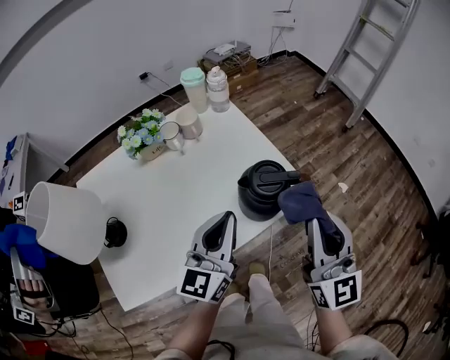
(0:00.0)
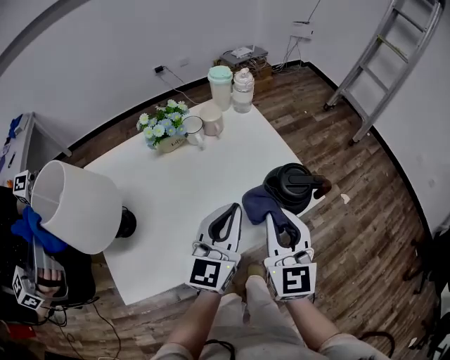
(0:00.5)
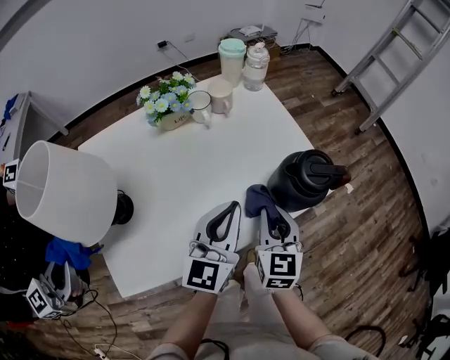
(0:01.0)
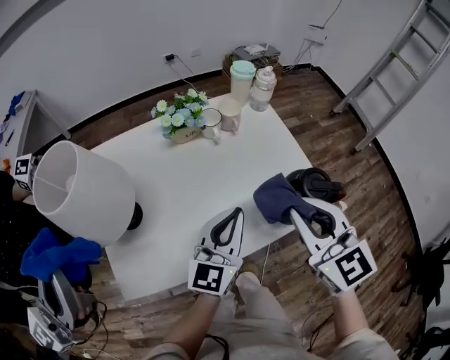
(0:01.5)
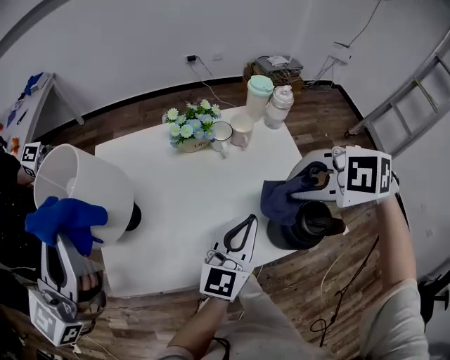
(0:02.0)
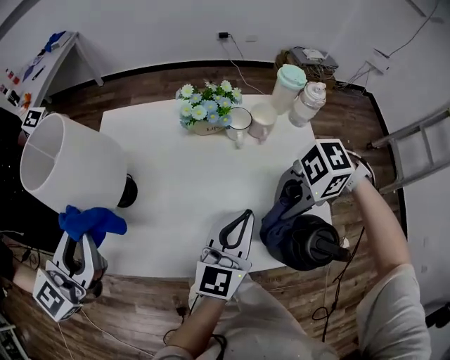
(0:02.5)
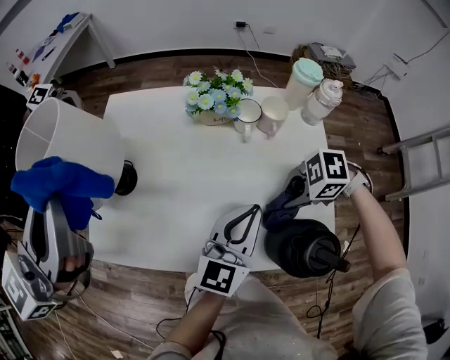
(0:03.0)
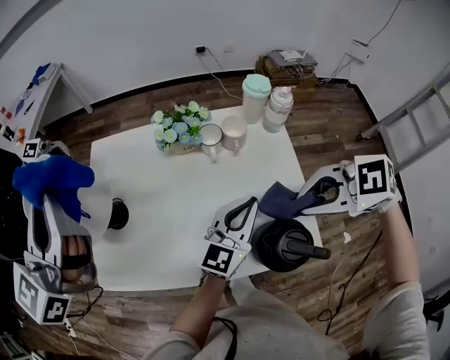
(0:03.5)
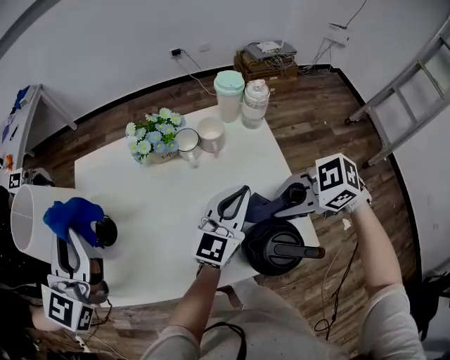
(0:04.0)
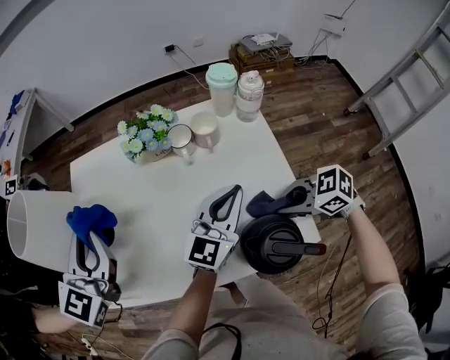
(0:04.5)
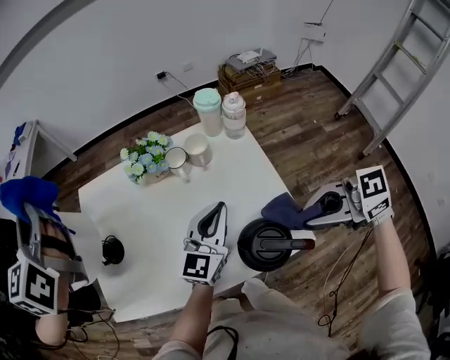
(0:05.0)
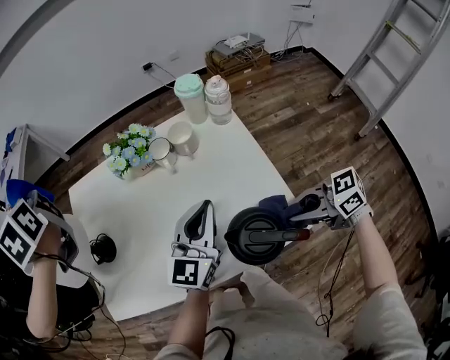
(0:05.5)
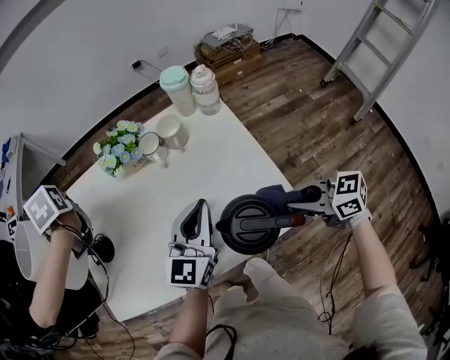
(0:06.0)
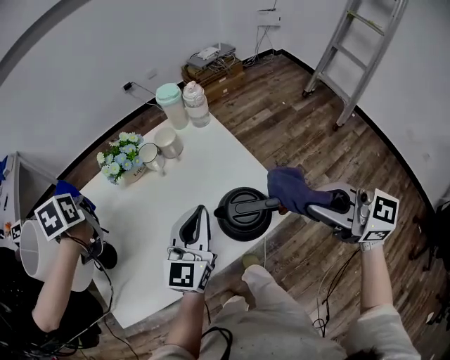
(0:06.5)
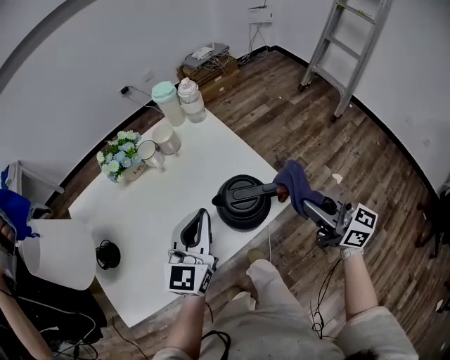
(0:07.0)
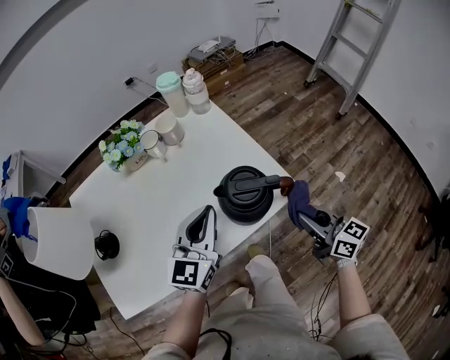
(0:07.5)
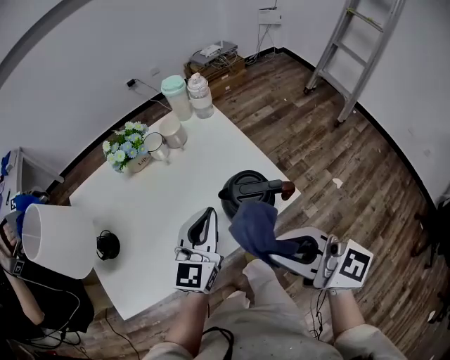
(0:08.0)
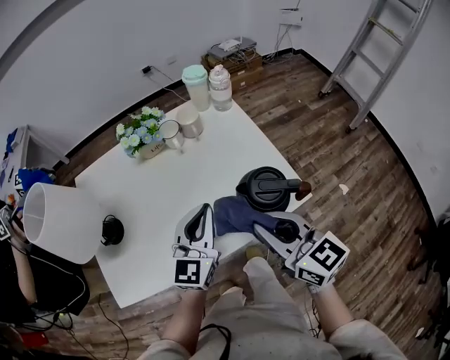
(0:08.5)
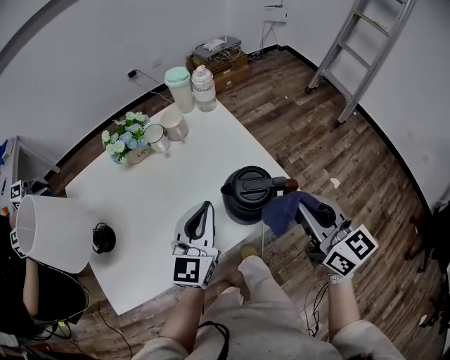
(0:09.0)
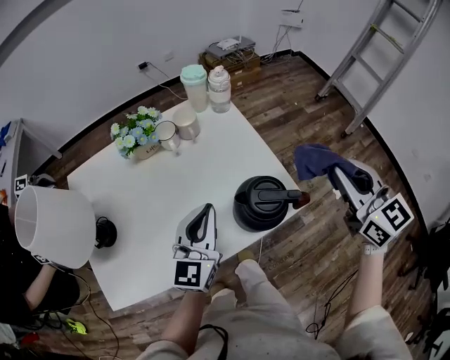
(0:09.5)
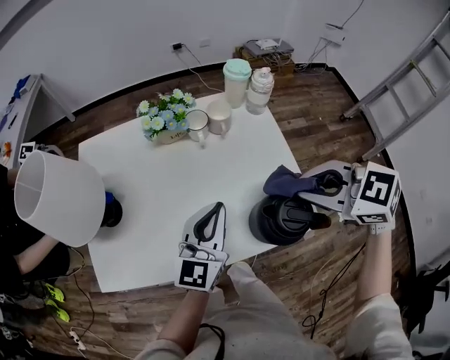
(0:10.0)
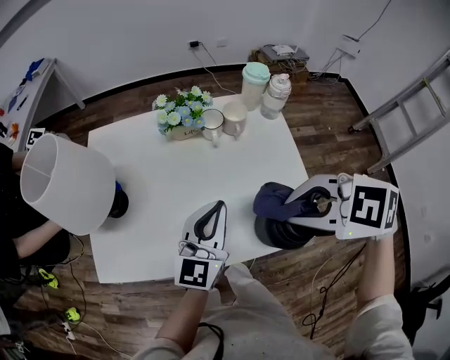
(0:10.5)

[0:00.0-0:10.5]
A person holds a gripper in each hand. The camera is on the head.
0:00.0 to 0:02.0: The left gripper moves roughly 5 cm, while the right gripper moves some 20 cm downward and comes back, and points its fingers about 60 degrees further downward.
0:02.0 to 0:04.0: The right gripper goes up and down, roughly 20 cm each way, reversing 2 times, and rotates some 30 degrees. Meanwhile the left gripper ends up some 15 cm from where it was.
0:04.0 to 0:06.5: The right gripper goes up and down, approximately 20 cm each way, reversing 3 times, and tips its fingers upward by some 30 degrees; the left gripper shifts by about 10 cm.
0:06.5 to 0:08.5: The right gripper heads to the left and downward, covering approximately 15 cm. Meanwhile the left gripper heads to the left, covering about 5 cm.
0:08.5 to 0:10.5: The right gripper points its fingers approximately 40 degrees further downward.

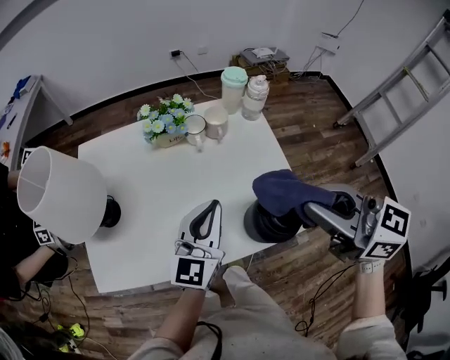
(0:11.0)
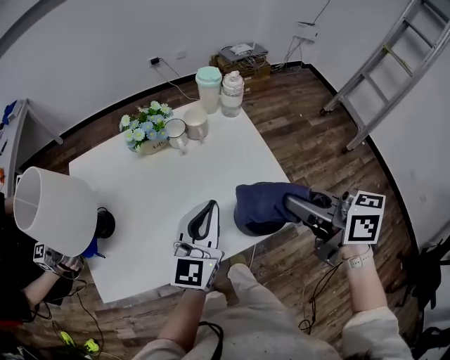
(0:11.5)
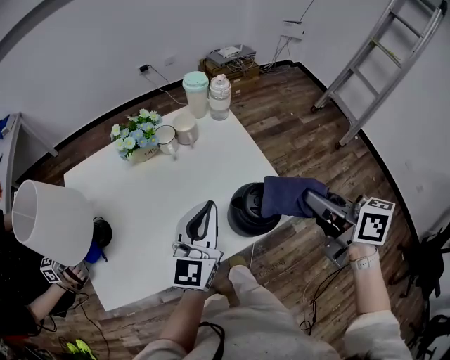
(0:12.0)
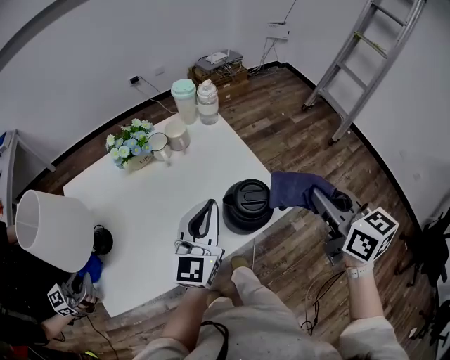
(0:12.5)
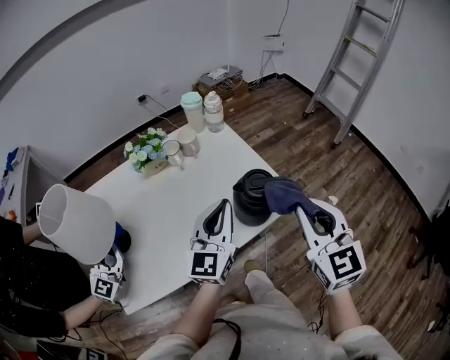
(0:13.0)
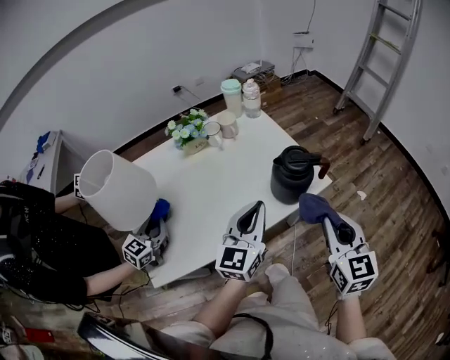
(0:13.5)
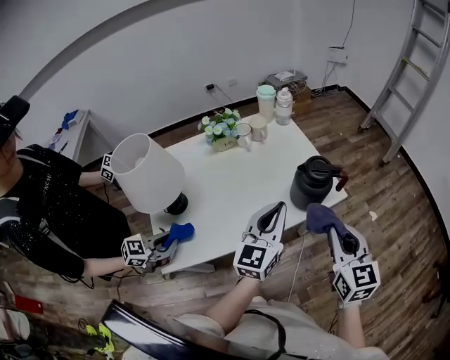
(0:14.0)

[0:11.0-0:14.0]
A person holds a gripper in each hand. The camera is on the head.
0:11.0 to 0:12.5: The right gripper ends up roughly 15 cm from where it was, and swivels approximately 40 degrees; the left gripper shifts by roughly 5 cm.
0:12.5 to 0:14.0: The left gripper heads backward, covering approximately 15 cm. Meanwhile the right gripper heads backward and to the left, covering approximately 20 cm.

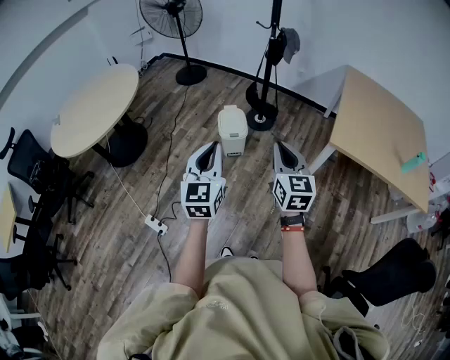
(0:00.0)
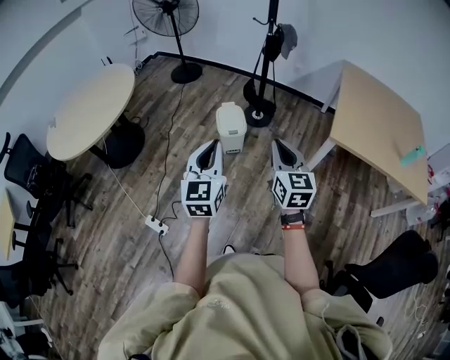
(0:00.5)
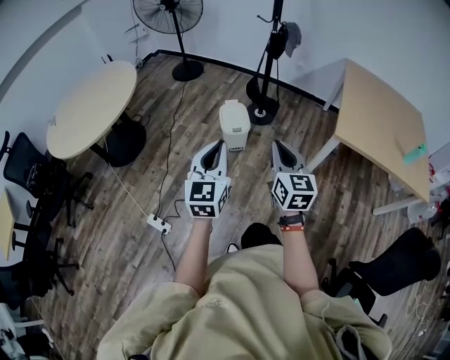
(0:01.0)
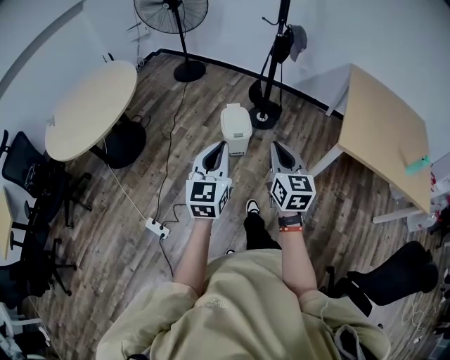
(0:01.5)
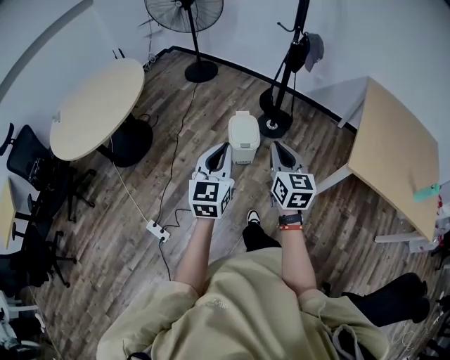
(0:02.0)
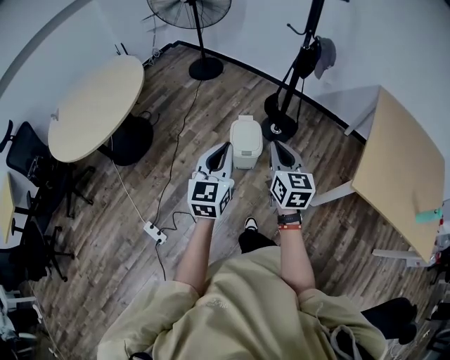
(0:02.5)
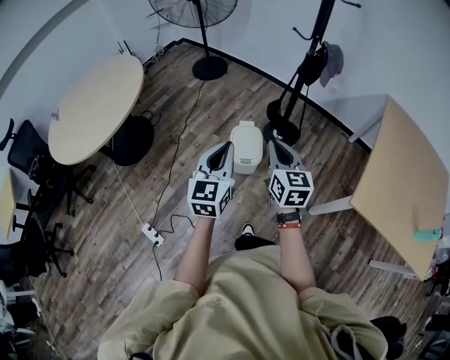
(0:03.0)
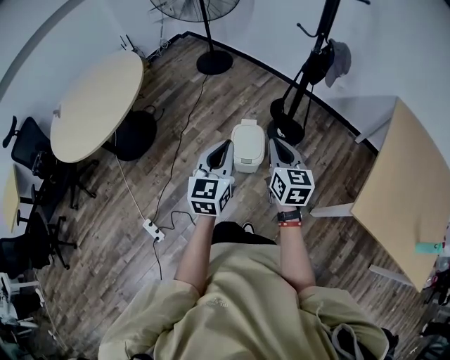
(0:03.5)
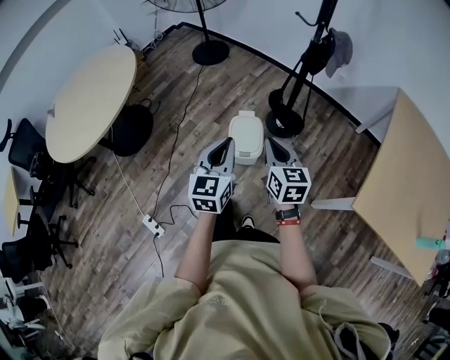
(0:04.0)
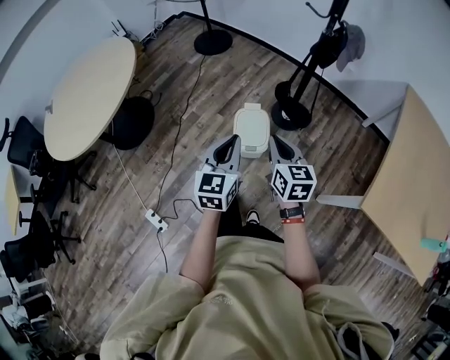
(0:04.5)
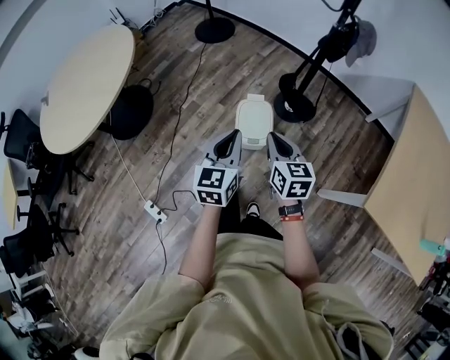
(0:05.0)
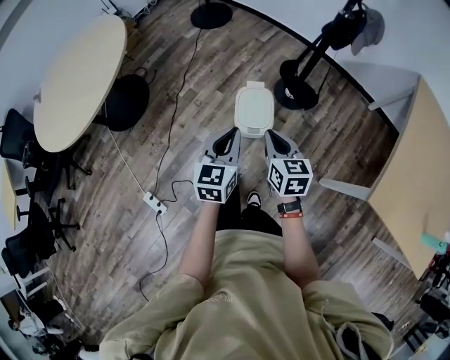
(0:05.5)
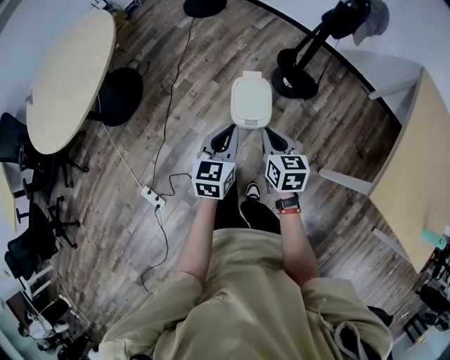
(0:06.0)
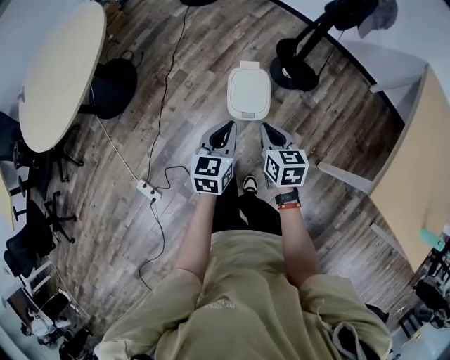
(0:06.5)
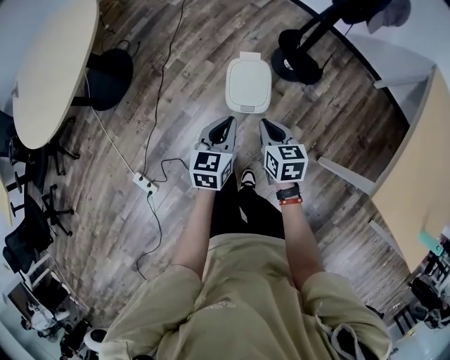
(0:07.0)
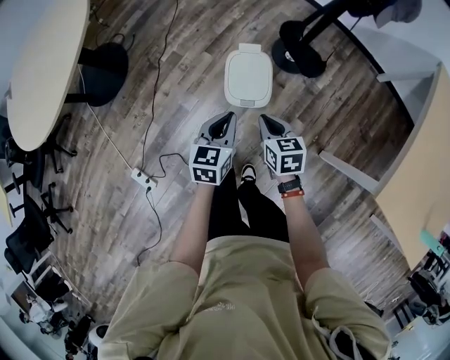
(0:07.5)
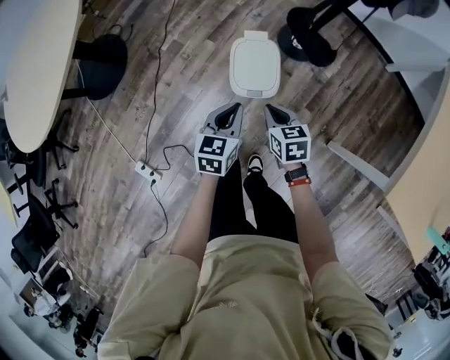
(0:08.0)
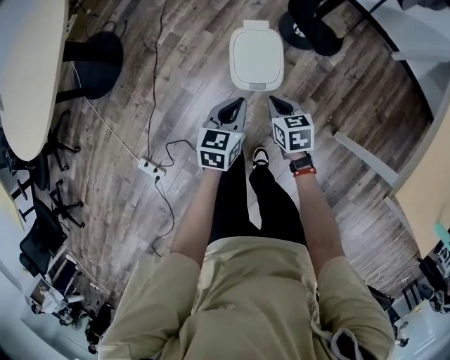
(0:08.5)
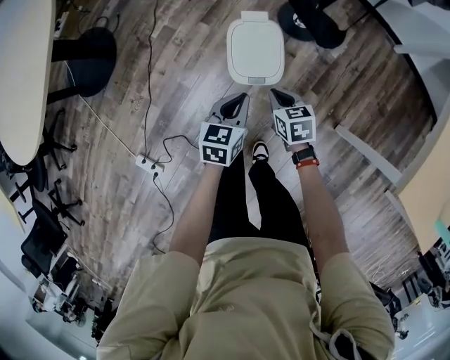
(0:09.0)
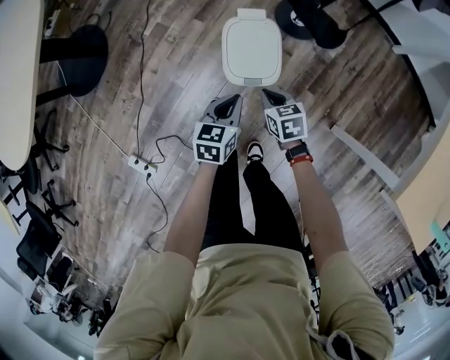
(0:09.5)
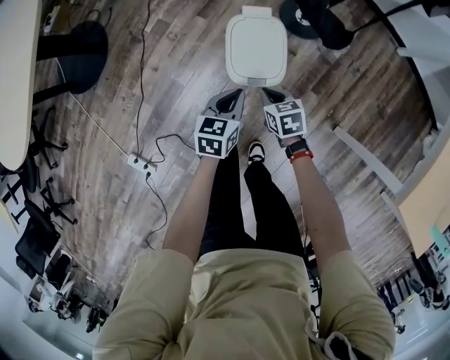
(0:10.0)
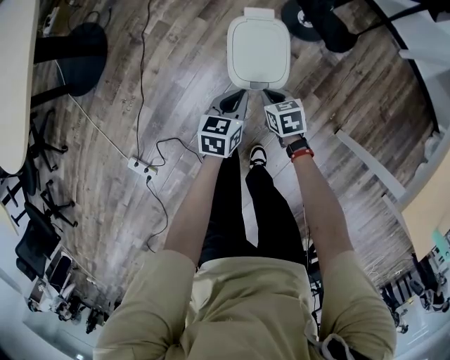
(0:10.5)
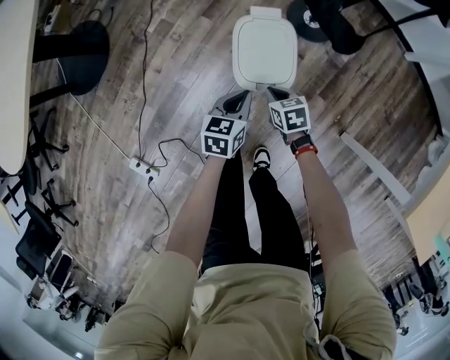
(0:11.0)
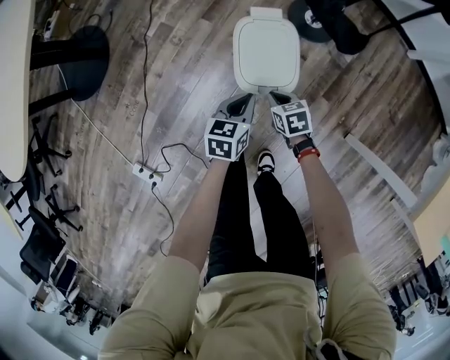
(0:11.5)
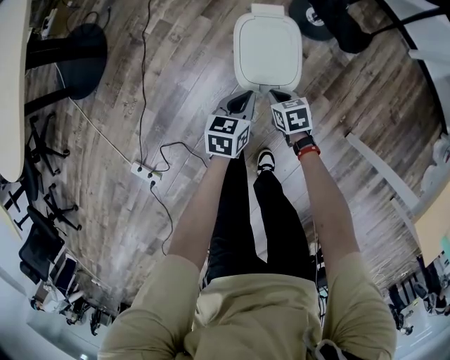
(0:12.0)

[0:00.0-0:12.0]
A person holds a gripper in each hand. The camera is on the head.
0:00.0 to 0:02.0: The right gripper moves forward and to the left, roughly 20 cm; the left gripper goes about 15 cm forward.
0:02.0 to 0:04.0: The grippers both shift forward by approximately 30 cm.
0:04.0 to 0:06.0: The right gripper travels downward by roughly 15 cm, while the left gripper travels downward and forward by about 20 cm.
0:06.0 to 0:08.0: Both grippers move downward, approximately 20 cm.
0:08.0 to 0:10.0: Both grippers move downward, approximately 20 cm.
0:10.0 to 0:12.0: Both grippers move downward, some 10 cm.

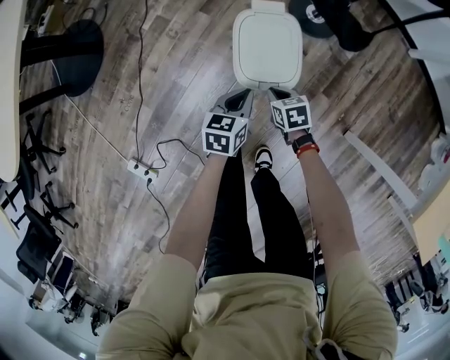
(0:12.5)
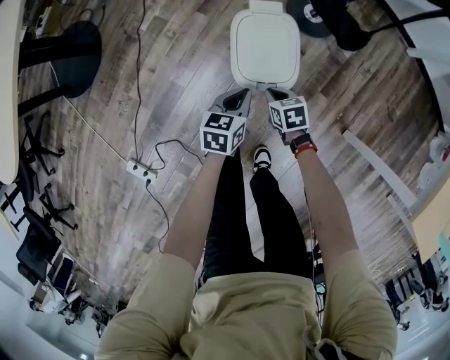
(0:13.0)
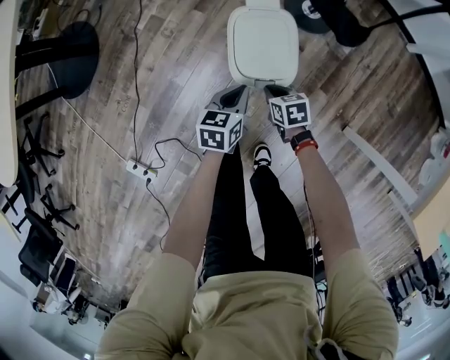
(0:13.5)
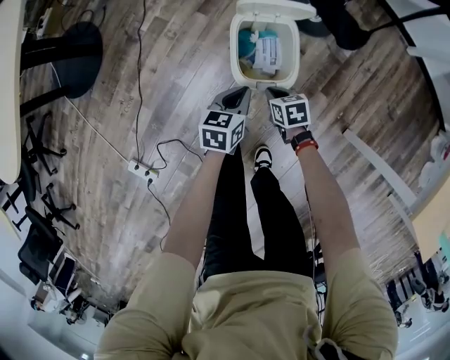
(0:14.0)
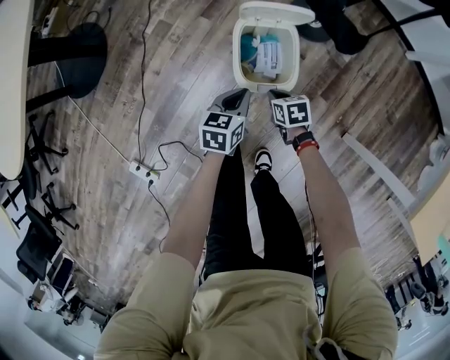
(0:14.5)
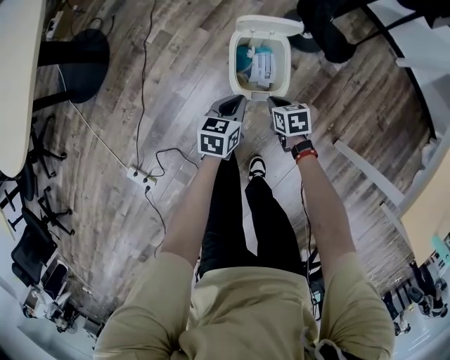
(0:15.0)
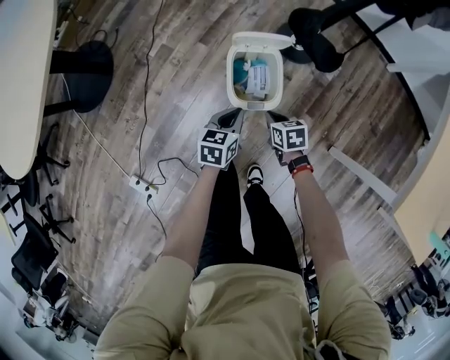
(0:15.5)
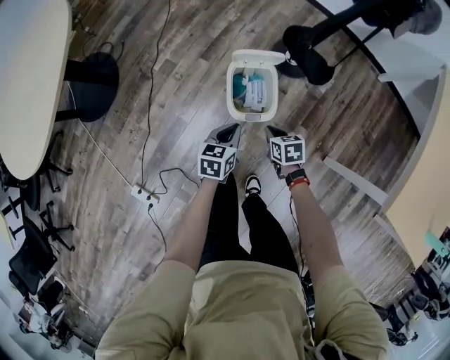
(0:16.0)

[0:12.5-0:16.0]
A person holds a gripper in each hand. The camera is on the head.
0:12.5 to 0:14.5: The grippers move only a little.
0:14.5 to 0:16.0: The grippers both shift upward by roughly 15 cm.
